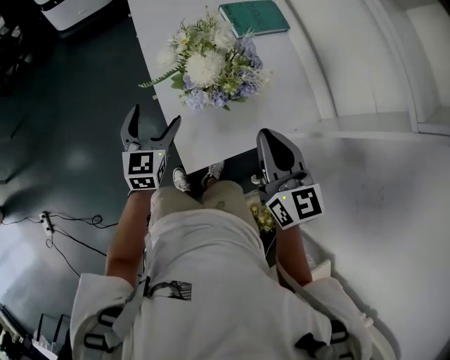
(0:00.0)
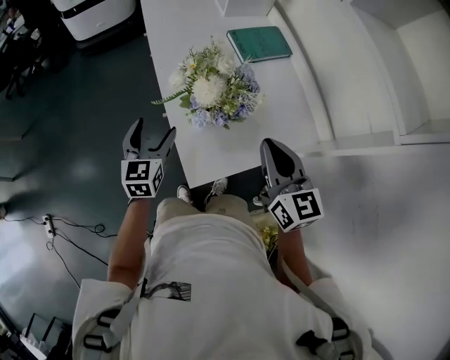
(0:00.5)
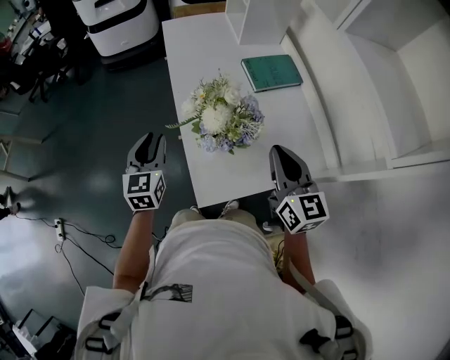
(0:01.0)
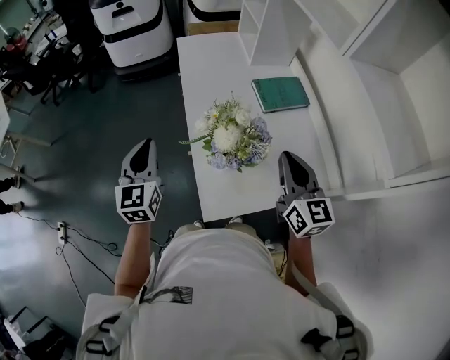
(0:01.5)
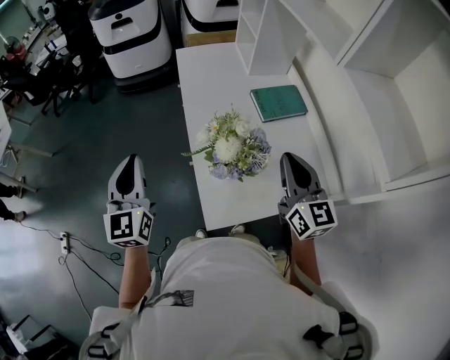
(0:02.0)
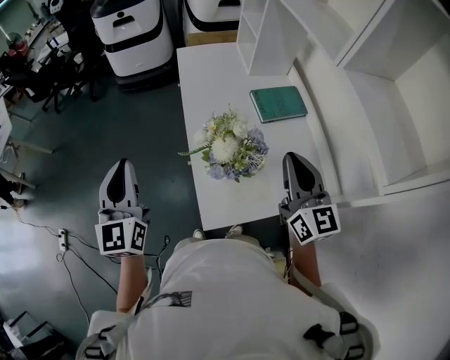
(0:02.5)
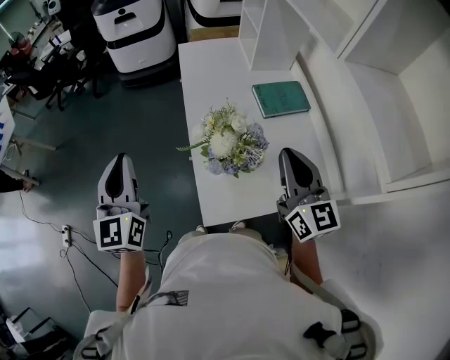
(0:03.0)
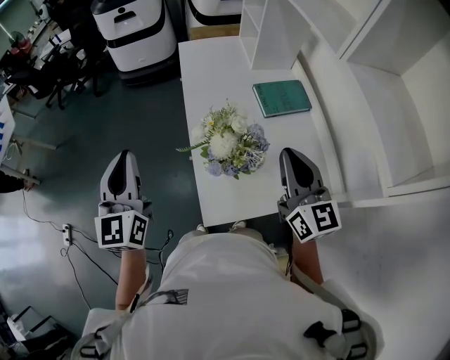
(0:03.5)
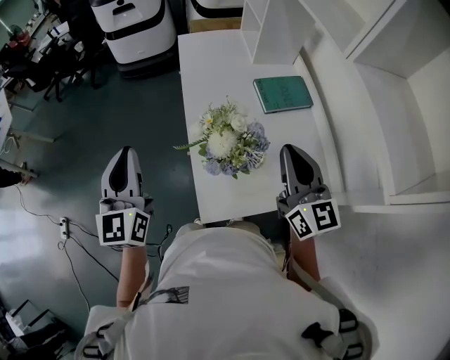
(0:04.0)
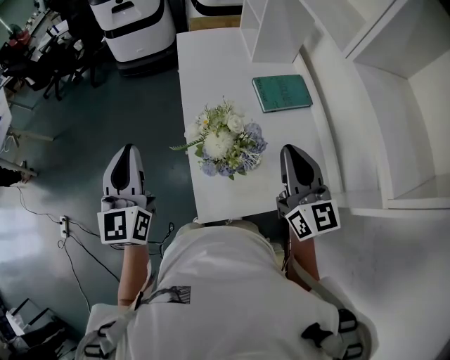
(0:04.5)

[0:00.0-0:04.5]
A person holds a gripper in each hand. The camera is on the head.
0:00.0 to 0:02.0: The right gripper travels forward and upward by some 15 cm, while the left gripper shifts about 25 cm upward and to the left, changes its angle by about 30 degrees, and closes up.
0:02.0 to 0:04.5: There are only small adjustments of the grippers.

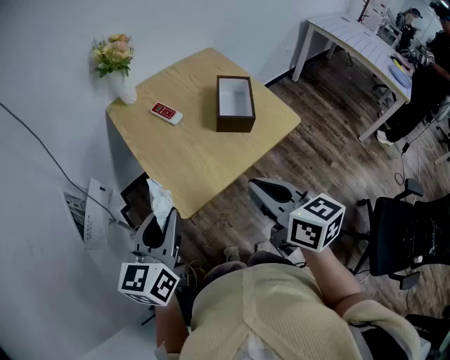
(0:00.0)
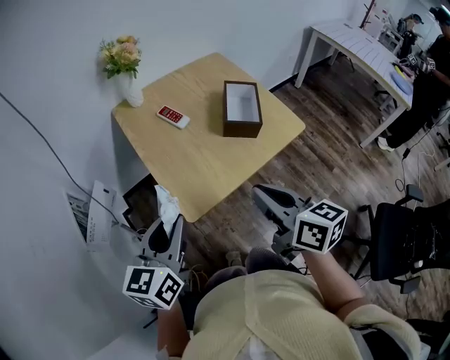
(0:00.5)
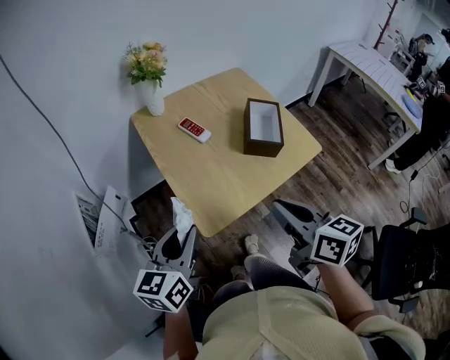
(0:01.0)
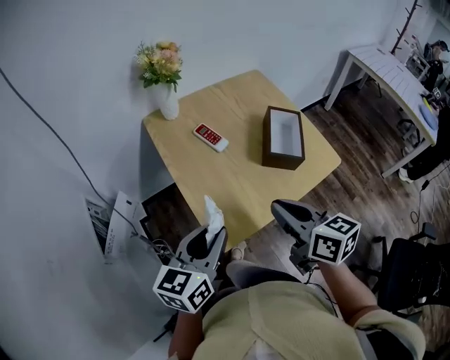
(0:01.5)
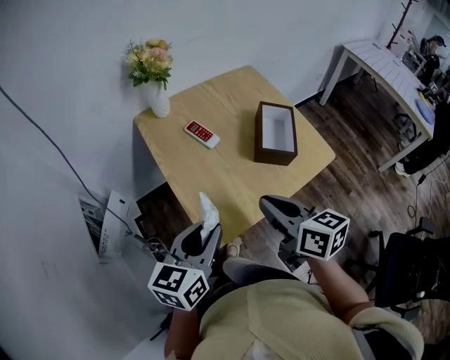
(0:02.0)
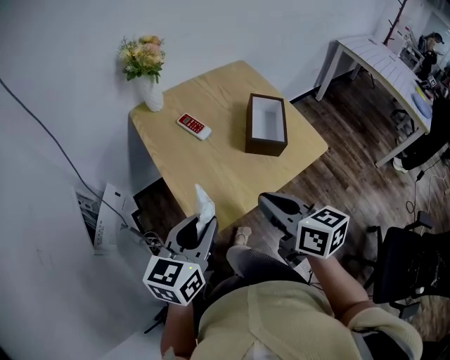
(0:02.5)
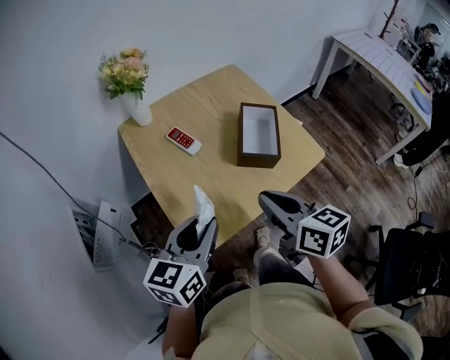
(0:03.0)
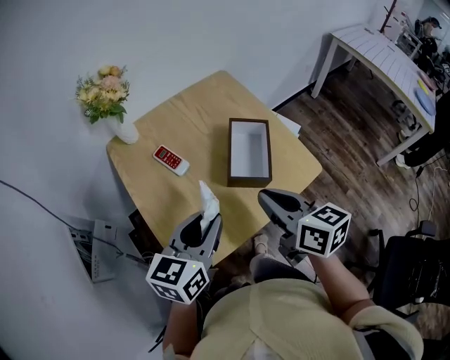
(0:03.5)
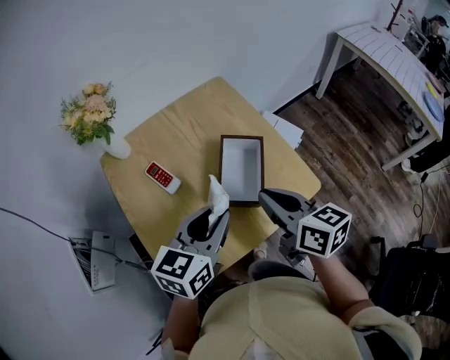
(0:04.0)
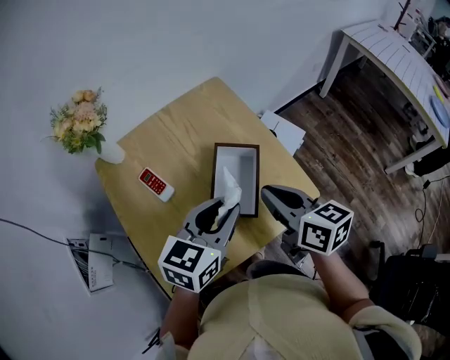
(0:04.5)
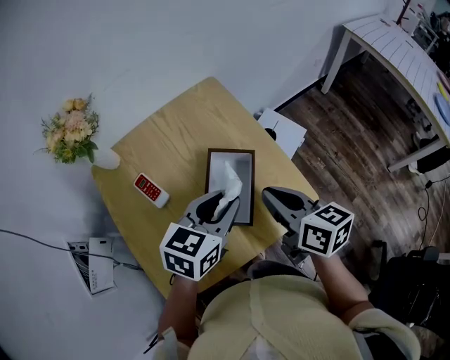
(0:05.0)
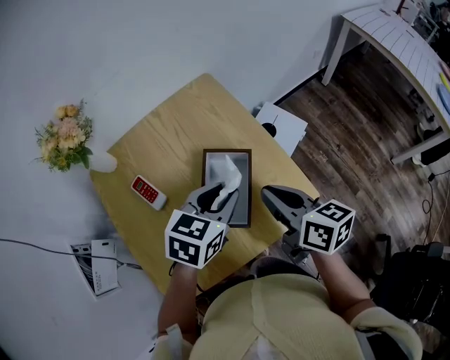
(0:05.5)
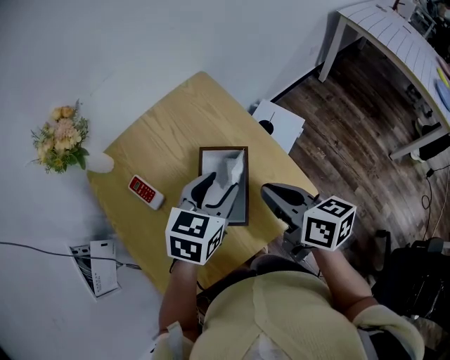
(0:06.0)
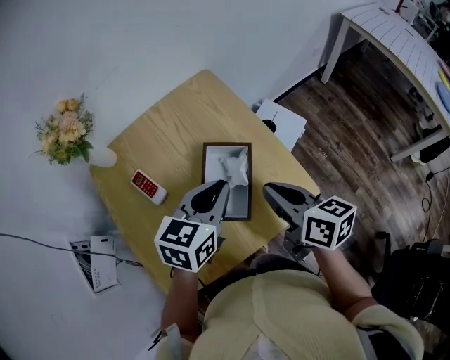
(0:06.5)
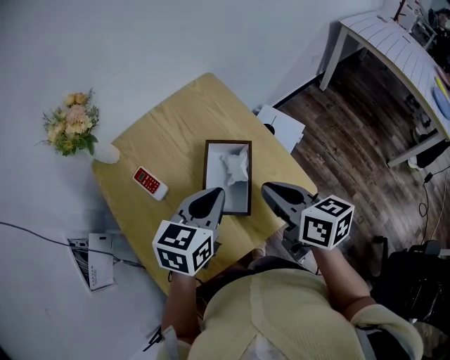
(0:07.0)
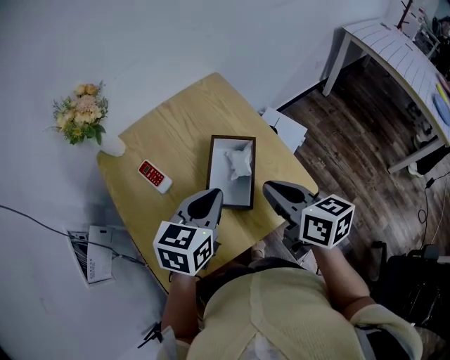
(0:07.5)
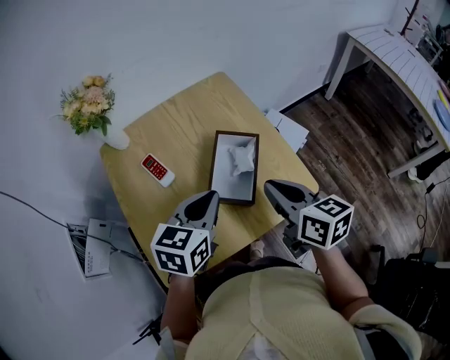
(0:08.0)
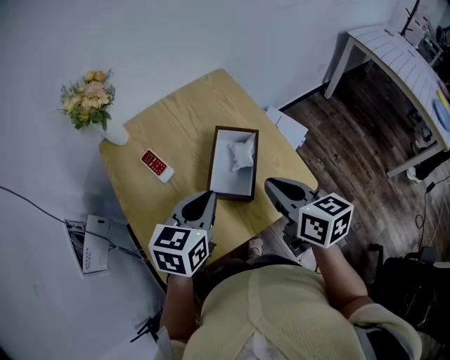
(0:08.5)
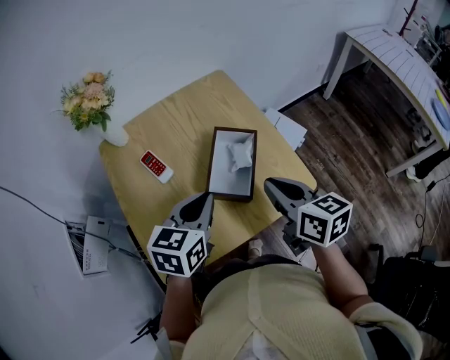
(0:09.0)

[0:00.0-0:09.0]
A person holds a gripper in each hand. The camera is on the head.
0:00.0 to 0:02.0: The right gripper heads forward and to the left, covering approximately 10 cm, while the left gripper shifts roughly 5 cm forward.
0:02.0 to 0:04.5: The left gripper is displaced to the right and forward by approximately 30 cm. Meanwhile the right gripper goes roughly 25 cm forward and to the right.
0:04.5 to 0:07.0: The left gripper closes up.
0:07.0 to 0:09.0: The left gripper moves to the left, some 5 cm.

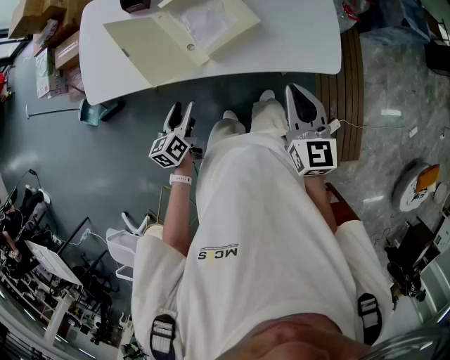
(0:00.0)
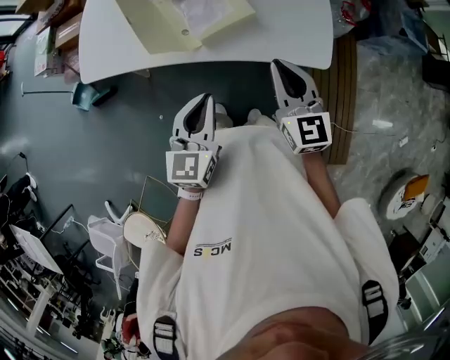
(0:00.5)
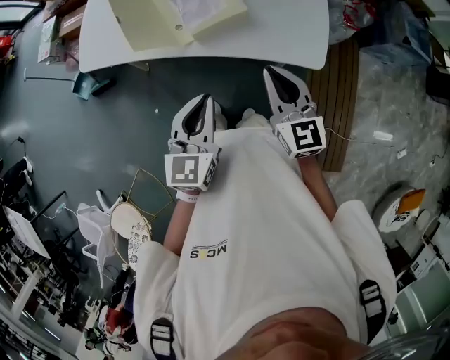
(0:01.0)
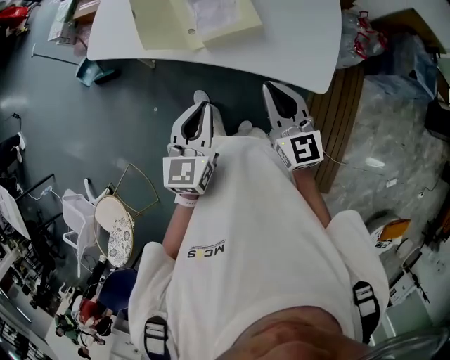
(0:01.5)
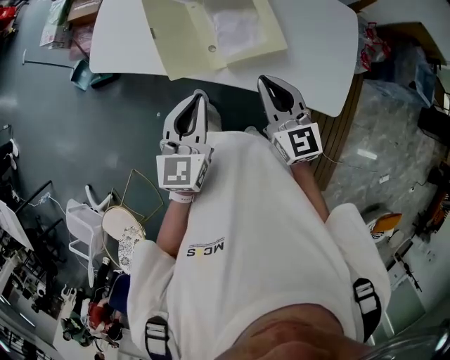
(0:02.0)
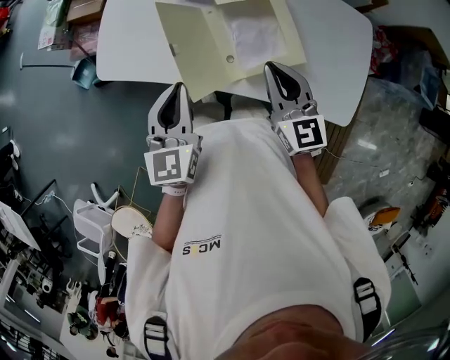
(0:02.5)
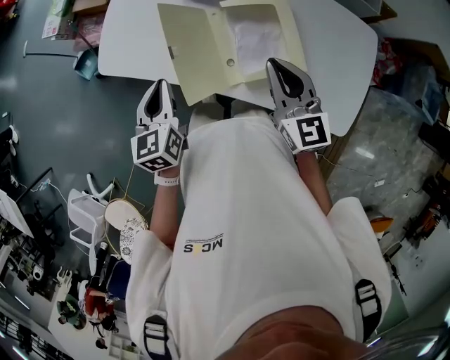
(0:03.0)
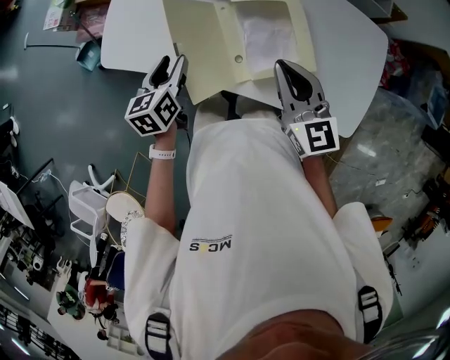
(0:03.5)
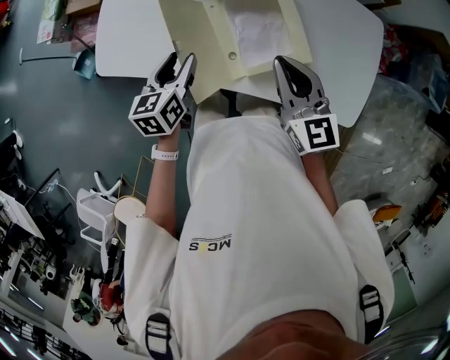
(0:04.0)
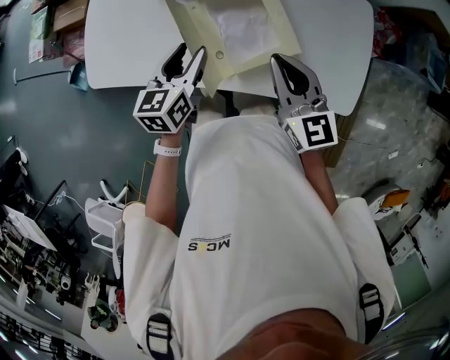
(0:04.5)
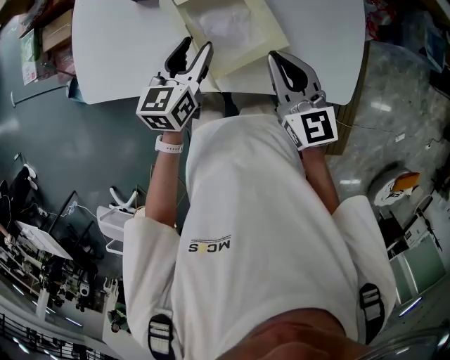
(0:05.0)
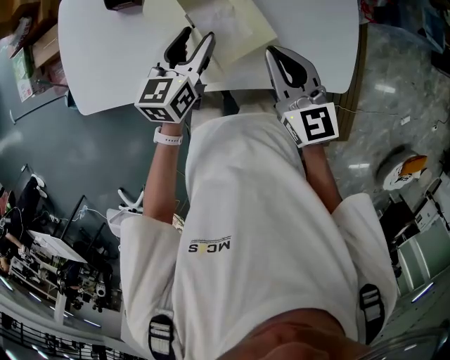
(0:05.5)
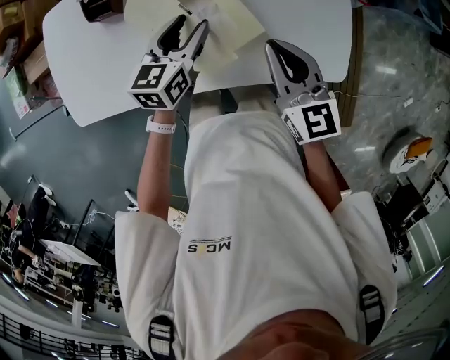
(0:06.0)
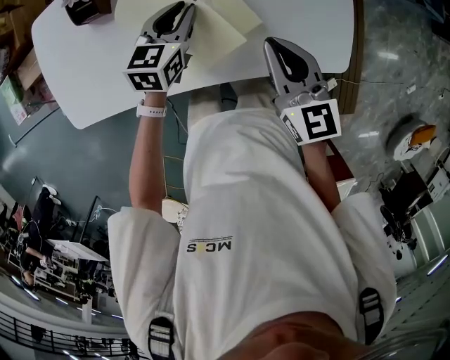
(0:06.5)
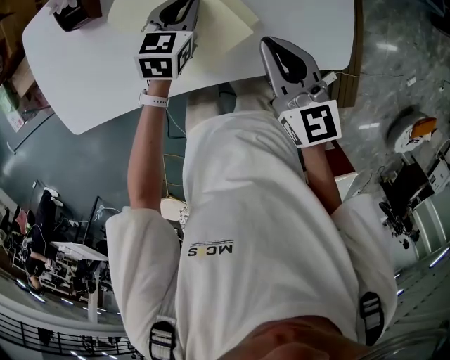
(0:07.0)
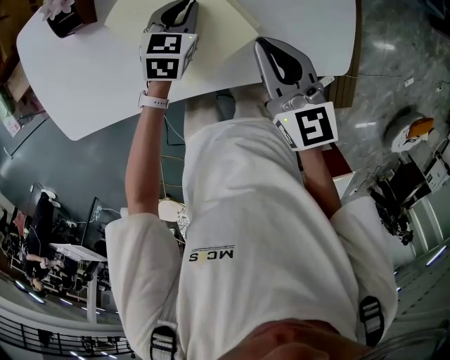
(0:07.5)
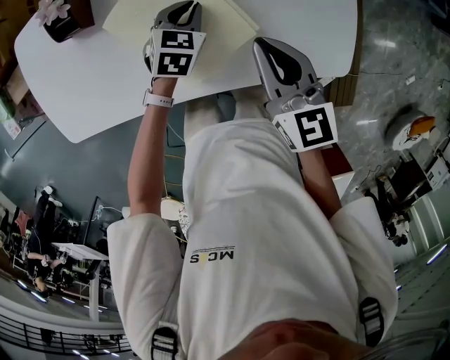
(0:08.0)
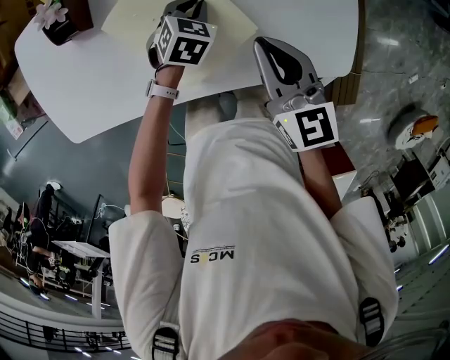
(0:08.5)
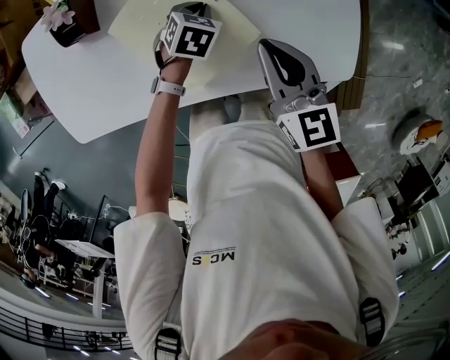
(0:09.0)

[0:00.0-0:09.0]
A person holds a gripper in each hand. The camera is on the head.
0:00.0 to 0:02.0: The right gripper goes roughly 15 cm to the left and forward, and rotates some 30 degrees, while the left gripper moves upward, about 20 cm, turns by about 30 degrees, and closes its fingers.
0:02.0 to 0:04.5: The left gripper is displaced forward and downward by roughly 20 cm, changes its angle by some 20 degrees, and opens its fingers. The right gripper is displaced forward by some 10 cm.
0:04.5 to 0:07.0: The left gripper heads to the right, forward and downward, covering roughly 25 cm, swivels roughly 30 degrees, and closes up. Meanwhile the right gripper is displaced to the right by approximately 10 cm.
0:07.0 to 0:09.0: The left gripper heads downward, covering approximately 10 cm, and rotates approximately 30 degrees.

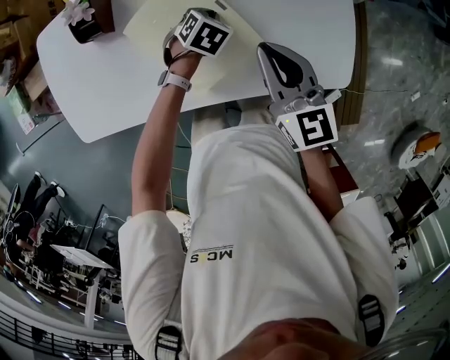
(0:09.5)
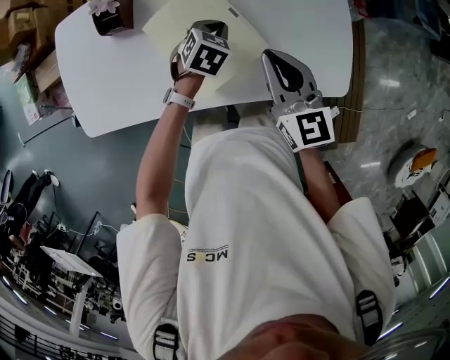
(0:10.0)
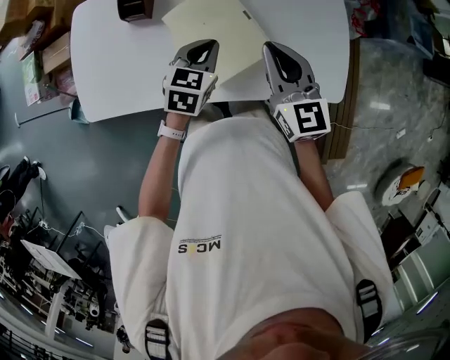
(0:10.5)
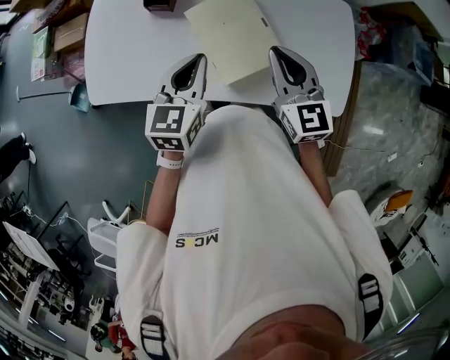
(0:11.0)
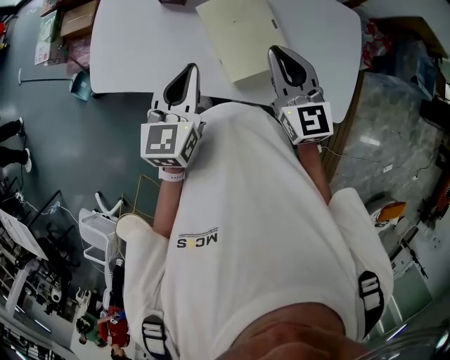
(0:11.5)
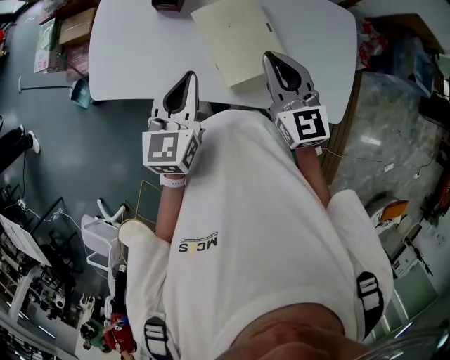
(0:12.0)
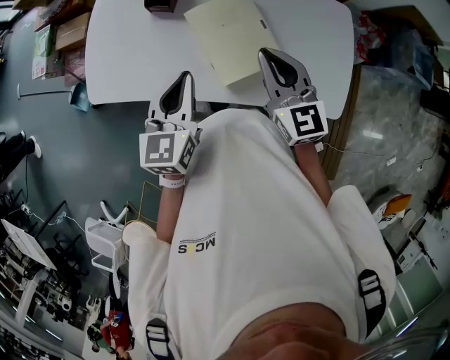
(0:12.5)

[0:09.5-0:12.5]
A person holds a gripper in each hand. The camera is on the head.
0:09.5 to 0:11.0: The left gripper heads upward, backward and to the left, covering about 35 cm, and points its fingers about 40 degrees further upward; the right gripper travels to the left and upward by some 10 cm.
0:11.0 to 0:12.5: The left gripper shifts by roughly 5 cm.

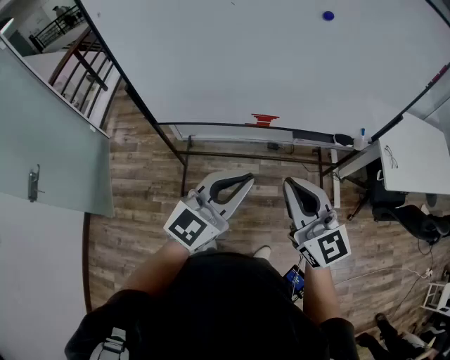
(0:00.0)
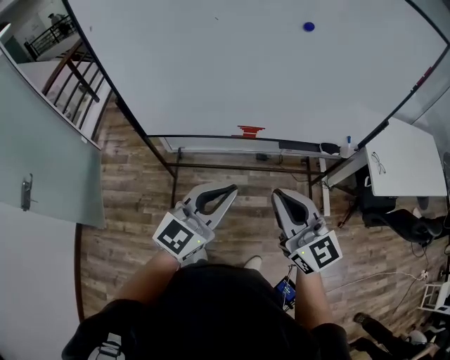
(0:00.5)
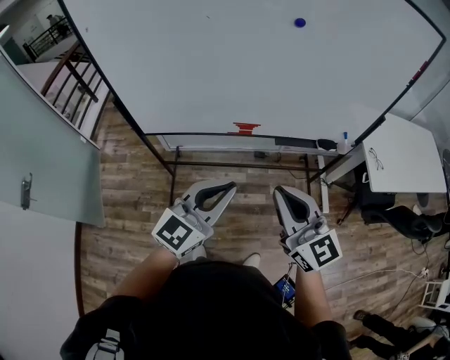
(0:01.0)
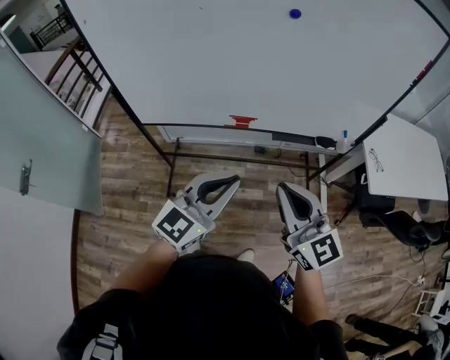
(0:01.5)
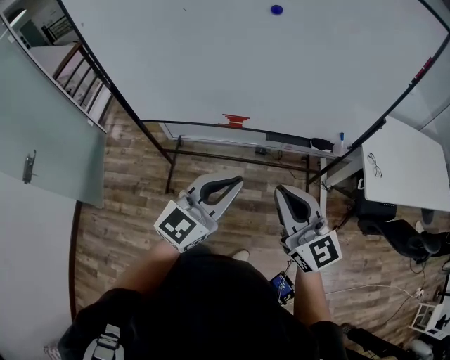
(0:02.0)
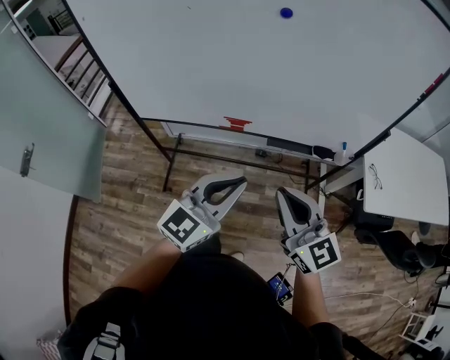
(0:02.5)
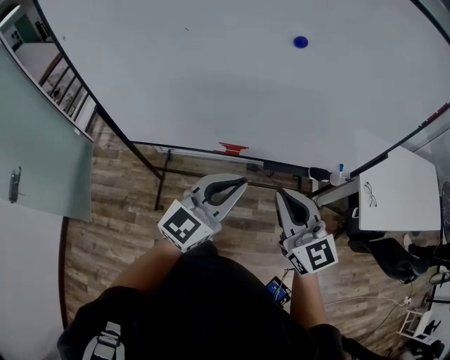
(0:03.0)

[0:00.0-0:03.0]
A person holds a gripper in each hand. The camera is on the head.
0:00.0 to 0:01.5: Both grippers move to the right, about 10 cm.
0:01.5 to 0:03.0: Both grippers travel together forward, roughly 15 cm.
